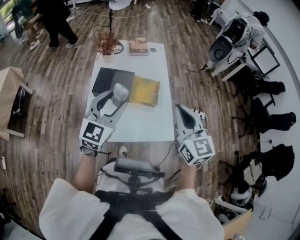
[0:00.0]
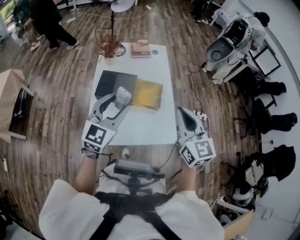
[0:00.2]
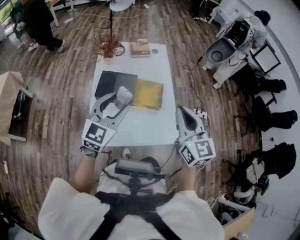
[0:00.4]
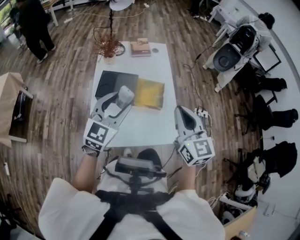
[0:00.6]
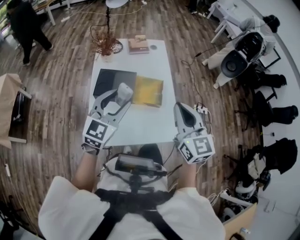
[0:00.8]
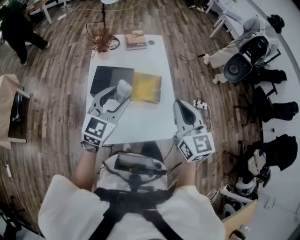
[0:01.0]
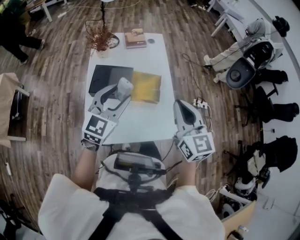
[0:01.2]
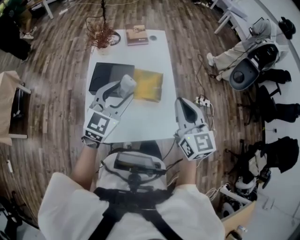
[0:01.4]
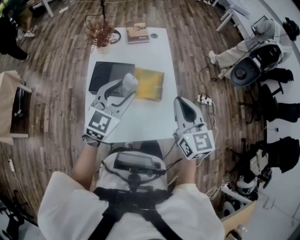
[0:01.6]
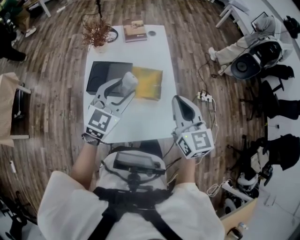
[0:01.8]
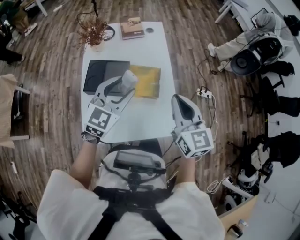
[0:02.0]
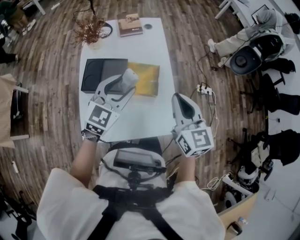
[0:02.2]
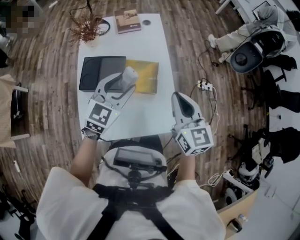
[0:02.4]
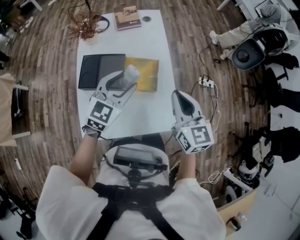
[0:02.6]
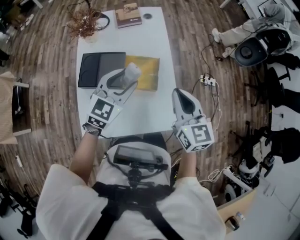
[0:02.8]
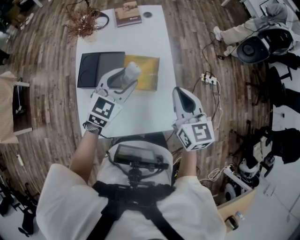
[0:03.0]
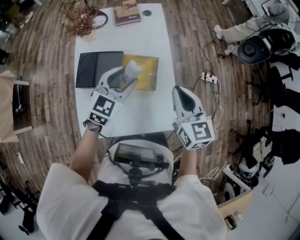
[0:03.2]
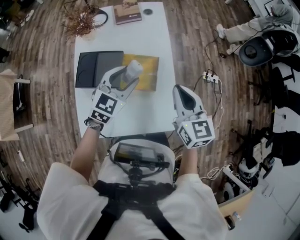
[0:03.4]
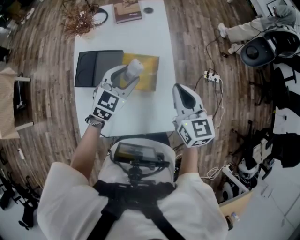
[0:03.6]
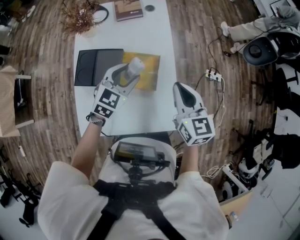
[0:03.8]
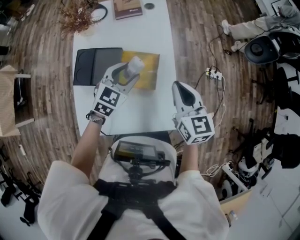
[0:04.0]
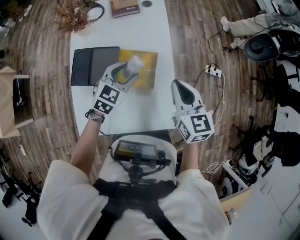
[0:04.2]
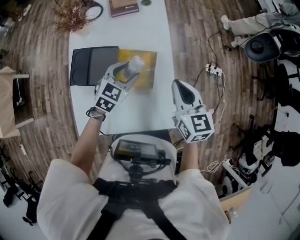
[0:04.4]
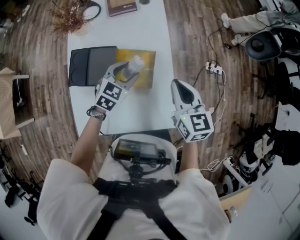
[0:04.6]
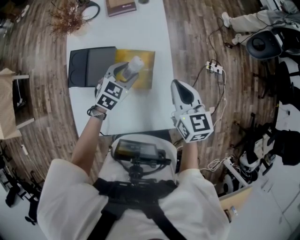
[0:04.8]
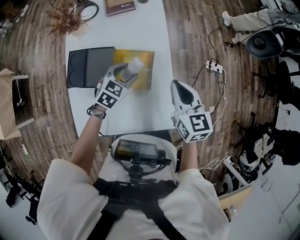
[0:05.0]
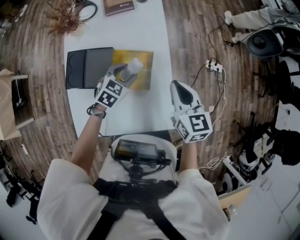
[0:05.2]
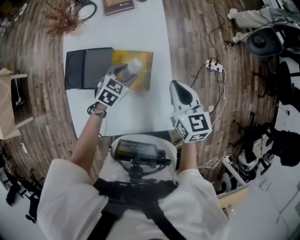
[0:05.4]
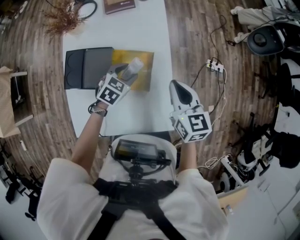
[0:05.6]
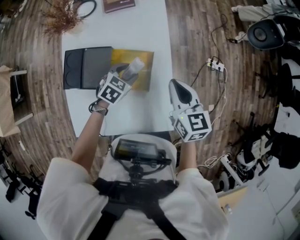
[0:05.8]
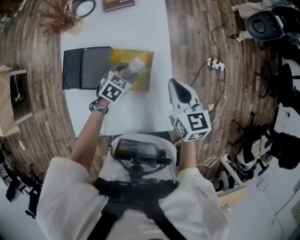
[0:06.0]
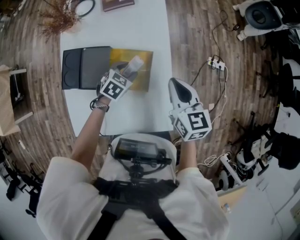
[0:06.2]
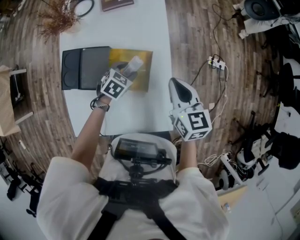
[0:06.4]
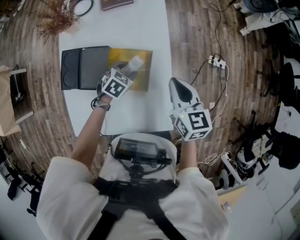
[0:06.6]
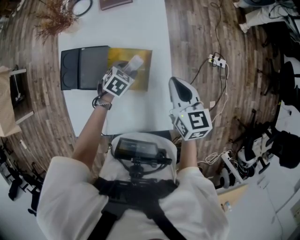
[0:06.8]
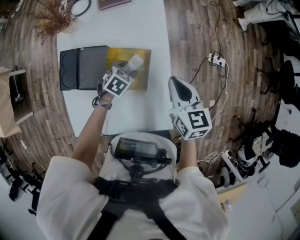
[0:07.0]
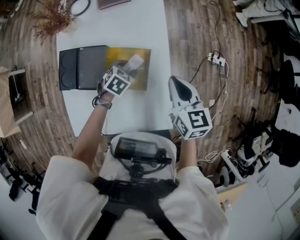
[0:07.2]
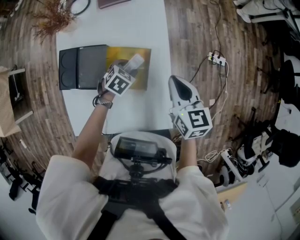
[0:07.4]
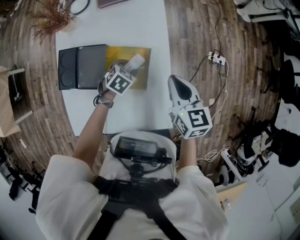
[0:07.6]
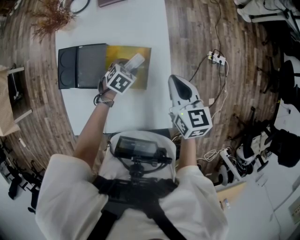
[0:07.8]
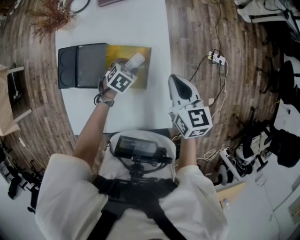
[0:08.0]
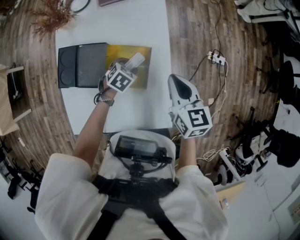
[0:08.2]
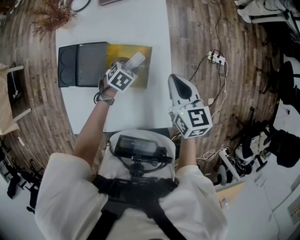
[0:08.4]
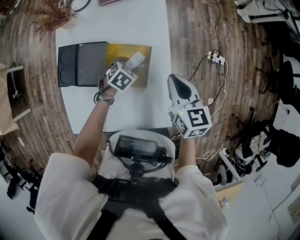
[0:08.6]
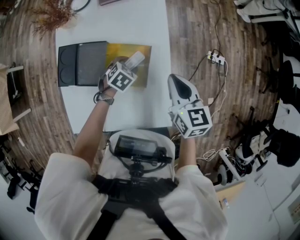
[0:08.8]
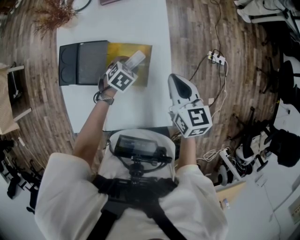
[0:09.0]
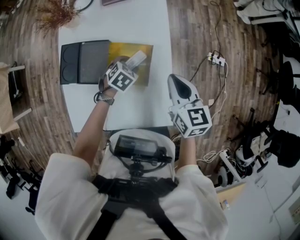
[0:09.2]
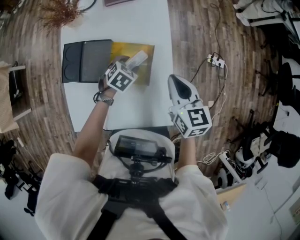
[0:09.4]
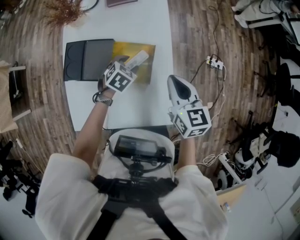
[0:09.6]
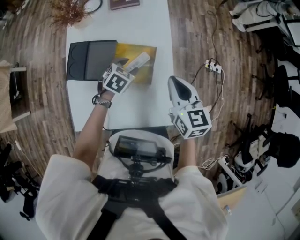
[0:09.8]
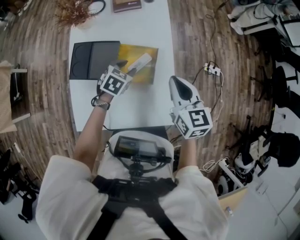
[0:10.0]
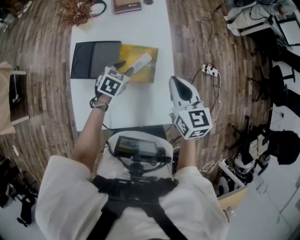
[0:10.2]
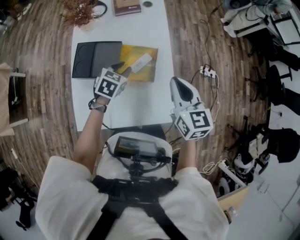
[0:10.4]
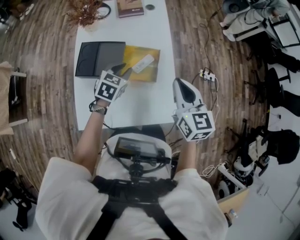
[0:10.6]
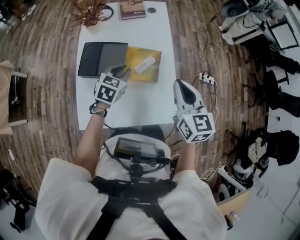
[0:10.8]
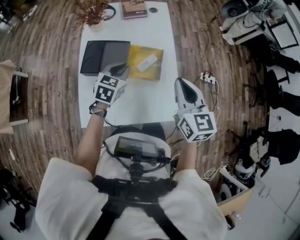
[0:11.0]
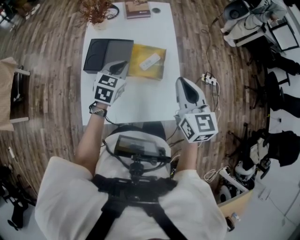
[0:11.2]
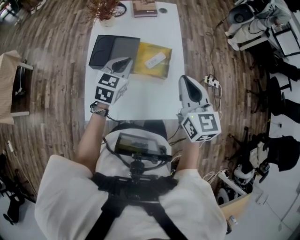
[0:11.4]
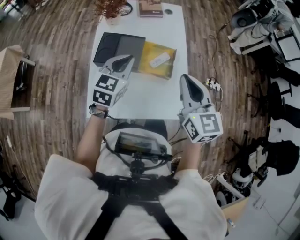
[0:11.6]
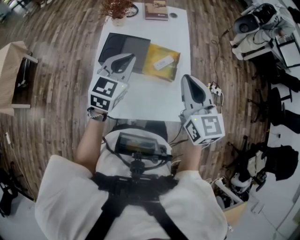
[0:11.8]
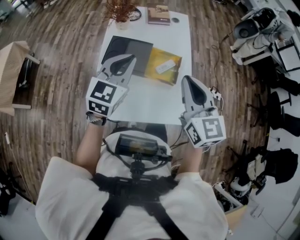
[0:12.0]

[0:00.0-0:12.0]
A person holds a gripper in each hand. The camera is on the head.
0:00.0 to 0:01.6: The left gripper travels forward by some 10 cm; the right gripper moves forward and downward, some 10 cm.
0:01.6 to 0:03.0: The two grippers go roughly 10 cm forward and downward.
0:03.0 to 0:04.4: The left gripper moves downward and forward, approximately 10 cm; the right gripper is displaced forward and downward by about 10 cm.
0:04.4 to 0:06.0: The left gripper is displaced downward by some 10 cm. Meanwhile the right gripper changes place by approximately 5 cm.
0:06.0 to 0:07.6: There are only small adjustments of the grippers.
0:07.6 to 0:09.0: Both grippers stay put.
0:09.0 to 0:10.4: The right gripper shifts roughly 15 cm upward and backward, while the left gripper shifts some 15 cm upward, to the left and backward, swivels roughly 20 degrees, and closes.
0:10.4 to 0:12.0: The right gripper heads upward, to the left and backward, covering about 15 cm. The left gripper moves upward, backward and to the left, roughly 25 cm, points its fingers some 30 degrees further upward, and closes.

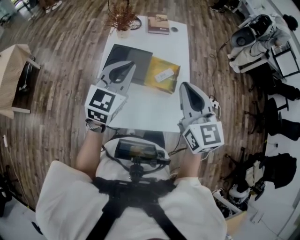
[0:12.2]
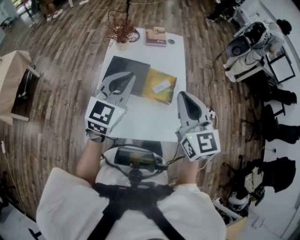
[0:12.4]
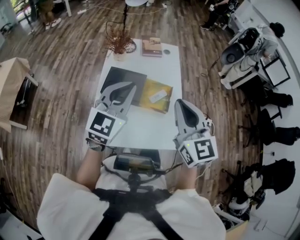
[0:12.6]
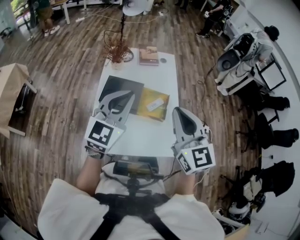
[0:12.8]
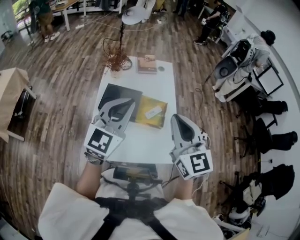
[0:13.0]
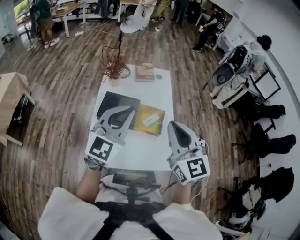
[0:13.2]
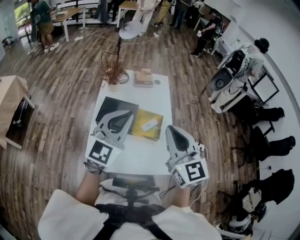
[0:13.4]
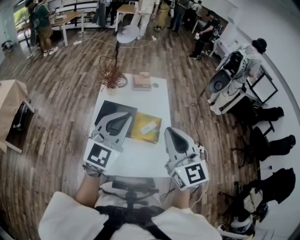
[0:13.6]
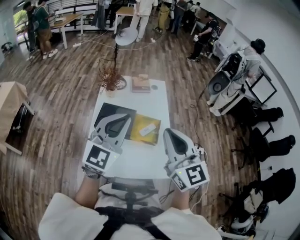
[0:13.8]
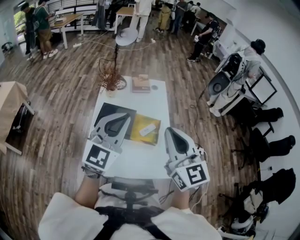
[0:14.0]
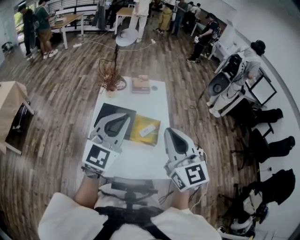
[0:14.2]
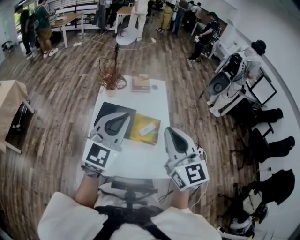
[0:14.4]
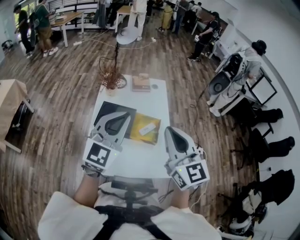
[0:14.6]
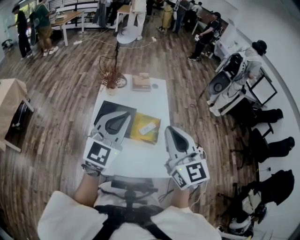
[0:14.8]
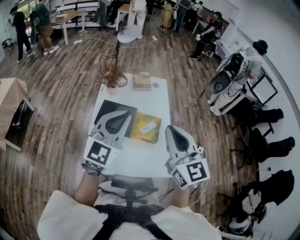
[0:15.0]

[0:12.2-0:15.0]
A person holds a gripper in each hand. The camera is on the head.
0:12.2 to 0:13.6: The two grippers go approximately 10 cm upward.
0:13.6 to 0:15.0: Neither gripper changes place.

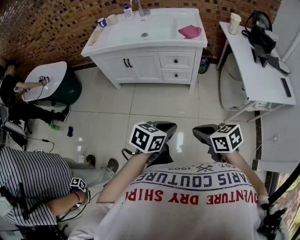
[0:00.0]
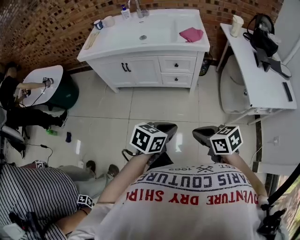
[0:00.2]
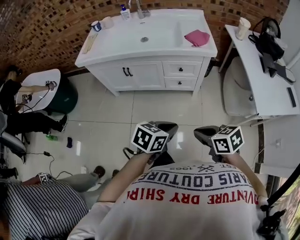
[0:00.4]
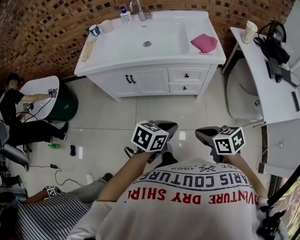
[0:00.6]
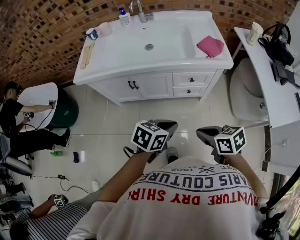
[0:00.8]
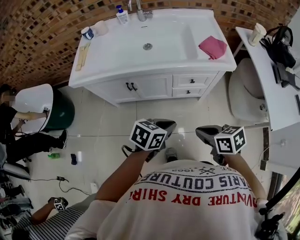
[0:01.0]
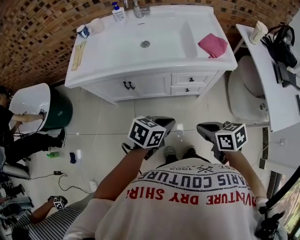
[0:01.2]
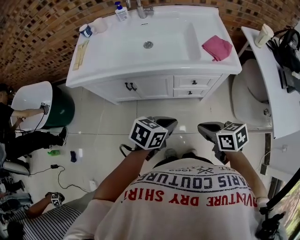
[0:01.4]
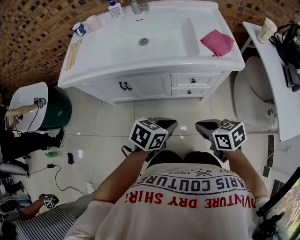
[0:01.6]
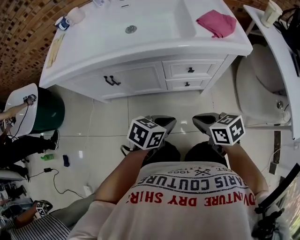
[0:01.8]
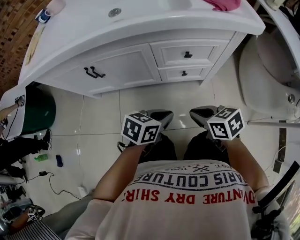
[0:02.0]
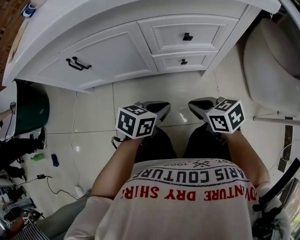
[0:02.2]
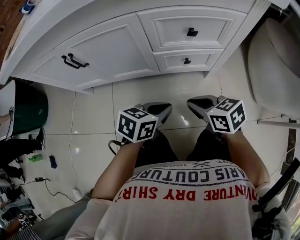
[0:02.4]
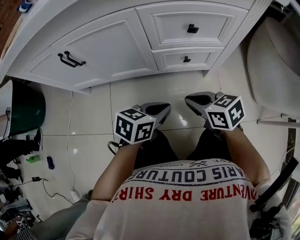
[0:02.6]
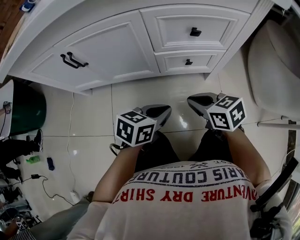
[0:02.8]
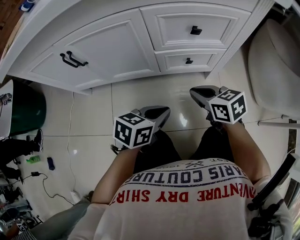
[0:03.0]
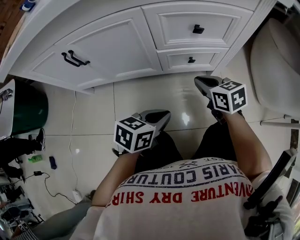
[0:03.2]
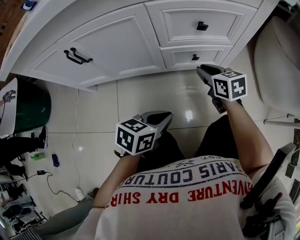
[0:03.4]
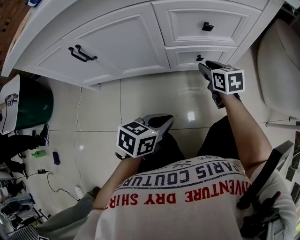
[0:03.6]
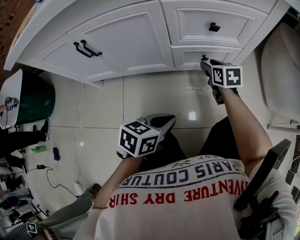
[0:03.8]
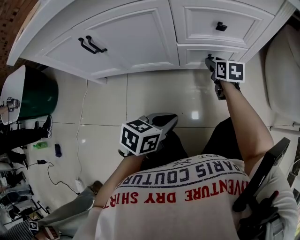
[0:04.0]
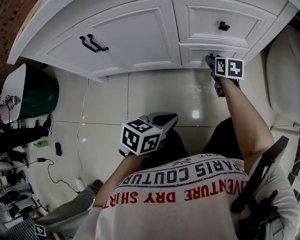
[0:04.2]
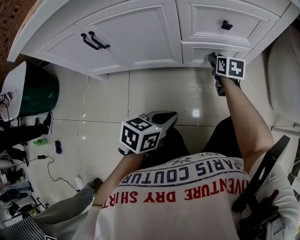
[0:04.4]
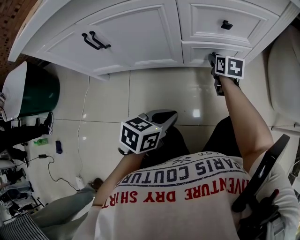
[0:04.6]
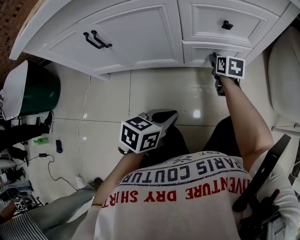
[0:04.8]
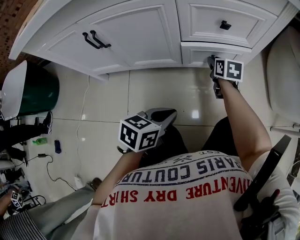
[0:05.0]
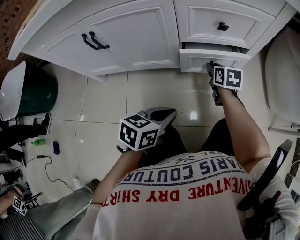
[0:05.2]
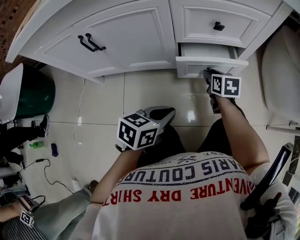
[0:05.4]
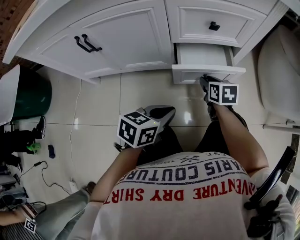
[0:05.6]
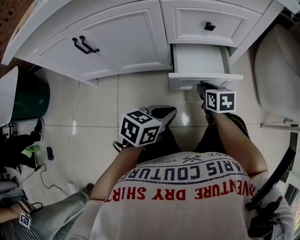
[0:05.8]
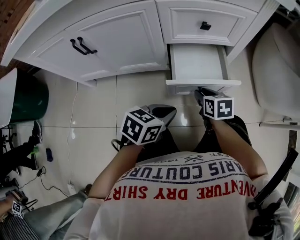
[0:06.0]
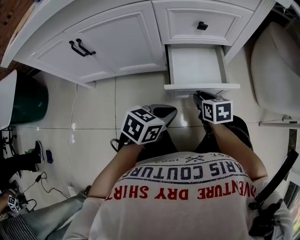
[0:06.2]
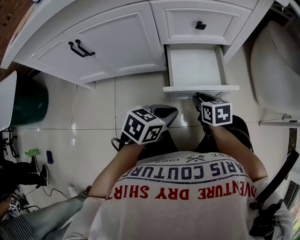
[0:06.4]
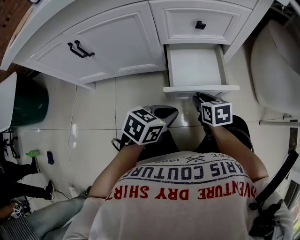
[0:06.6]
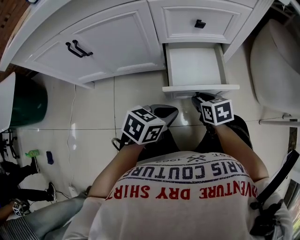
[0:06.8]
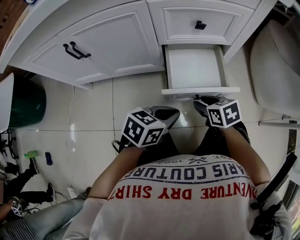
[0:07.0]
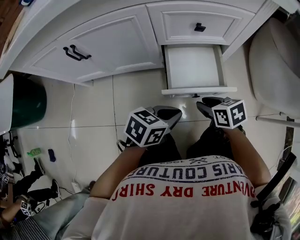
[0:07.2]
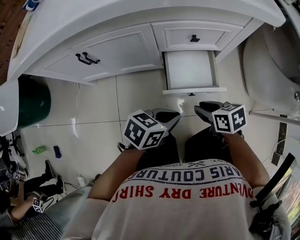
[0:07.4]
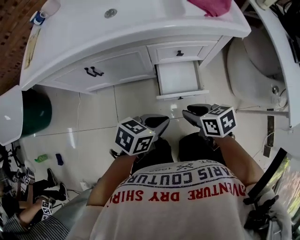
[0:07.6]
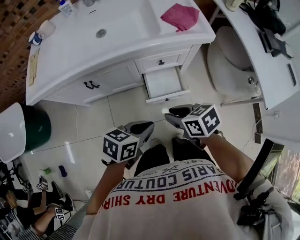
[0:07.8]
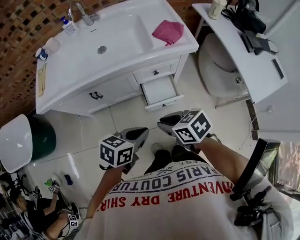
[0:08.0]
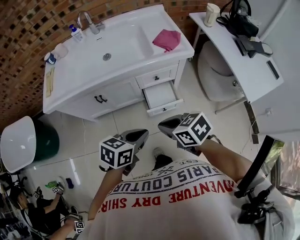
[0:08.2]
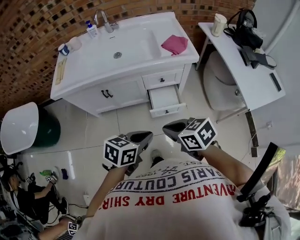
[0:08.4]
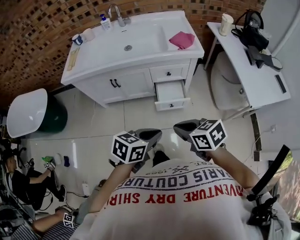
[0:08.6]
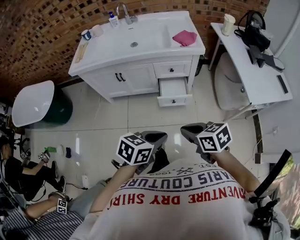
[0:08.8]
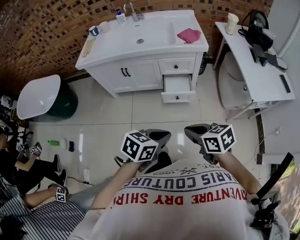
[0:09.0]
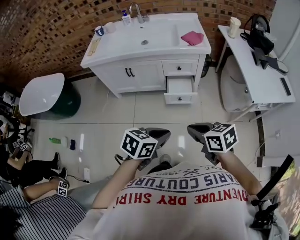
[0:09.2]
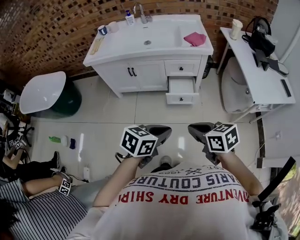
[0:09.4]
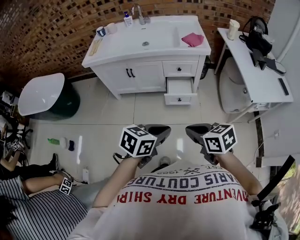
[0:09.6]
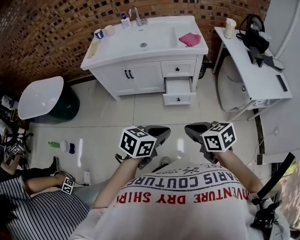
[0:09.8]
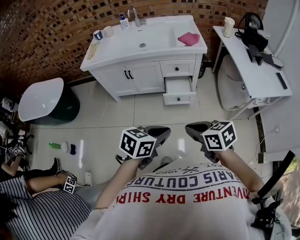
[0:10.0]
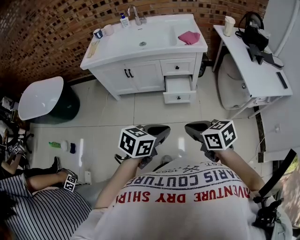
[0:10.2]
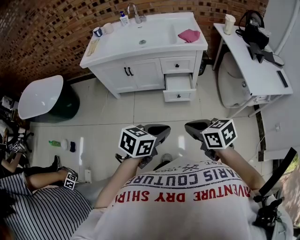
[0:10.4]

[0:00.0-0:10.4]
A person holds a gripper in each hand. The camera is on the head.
0:00.0 to 0:01.4: The right gripper moves roughly 35 cm. Meanwhile the left gripper shifts by about 40 cm.
0:01.4 to 0:03.0: Both grippers move downward, roughly 40 cm.
0:03.0 to 0:04.4: The right gripper goes roughly 20 cm forward and downward, swivels approximately 30 degrees, and opens; the left gripper goes some 5 cm backward.
0:04.4 to 0:06.0: The right gripper moves backward, some 15 cm. Meanwhile the left gripper ends up roughly 5 cm from where it was.
0:06.0 to 0:07.4: The grippers both shift upward by about 15 cm.
0:07.4 to 0:09.0: Both grippers travel together upward, approximately 40 cm. The right gripper closes its fingers.
0:09.0 to 0:10.4: The grippers stay close to where they were, moving slightly.
